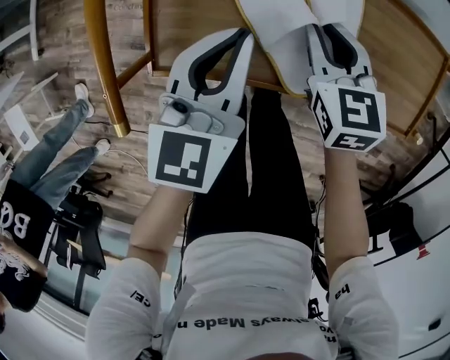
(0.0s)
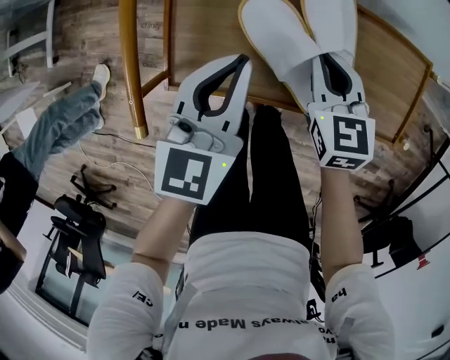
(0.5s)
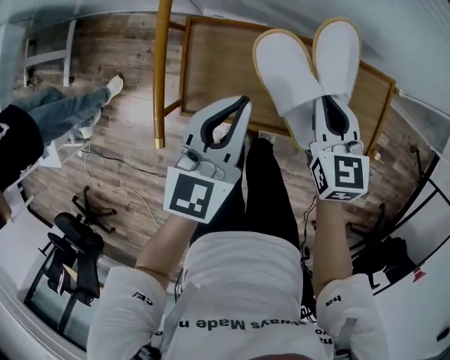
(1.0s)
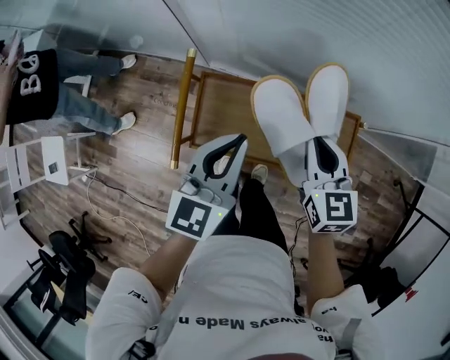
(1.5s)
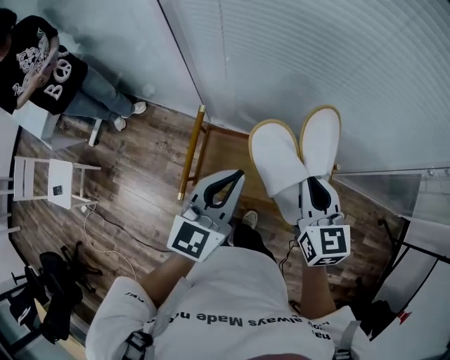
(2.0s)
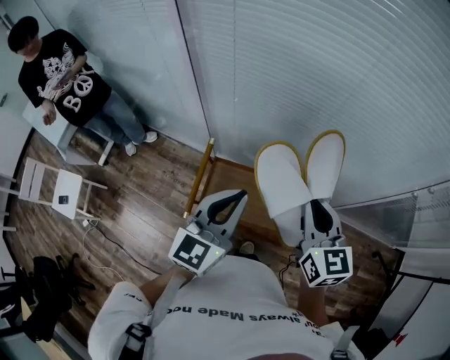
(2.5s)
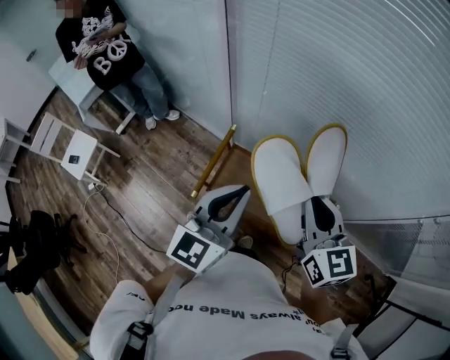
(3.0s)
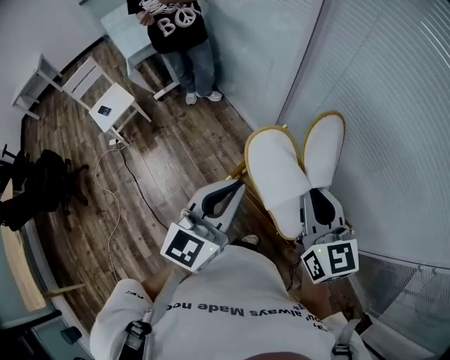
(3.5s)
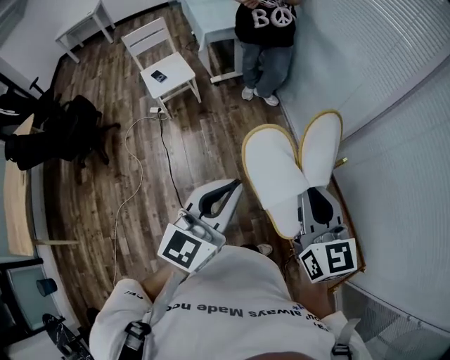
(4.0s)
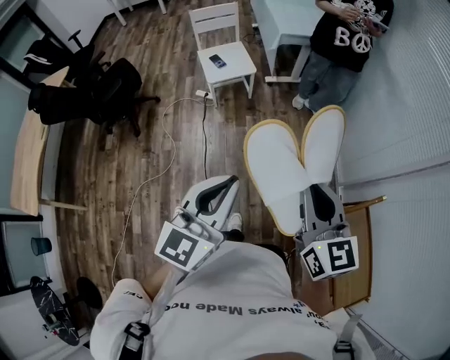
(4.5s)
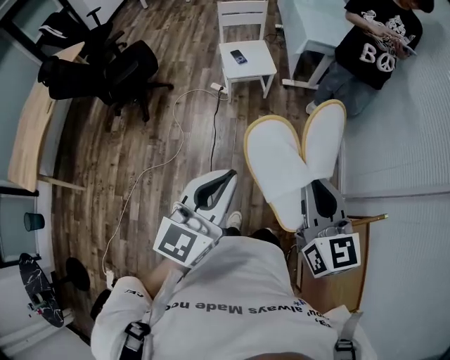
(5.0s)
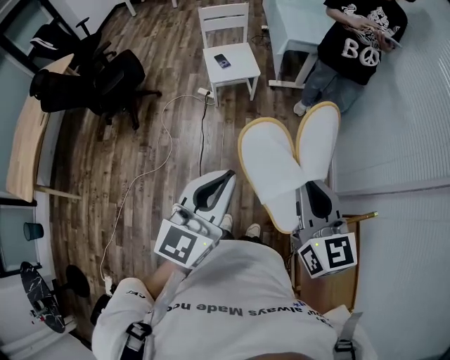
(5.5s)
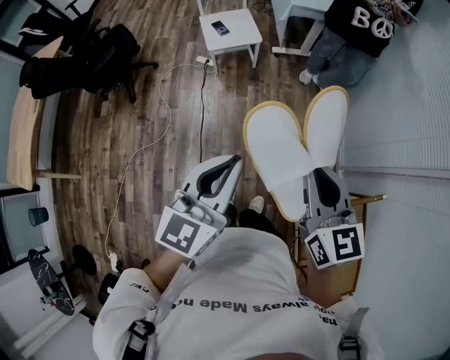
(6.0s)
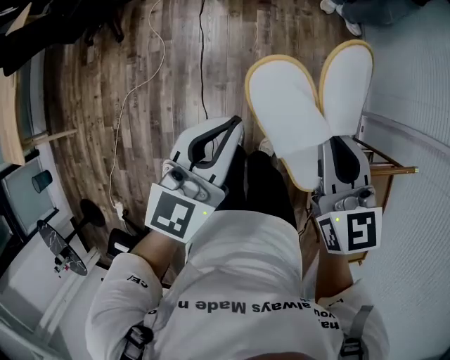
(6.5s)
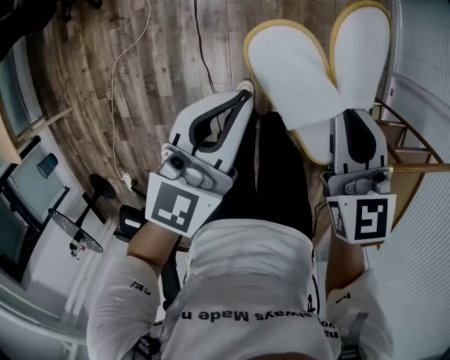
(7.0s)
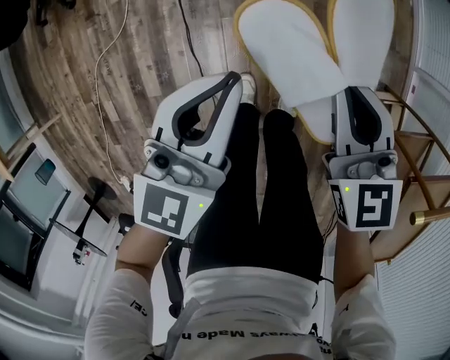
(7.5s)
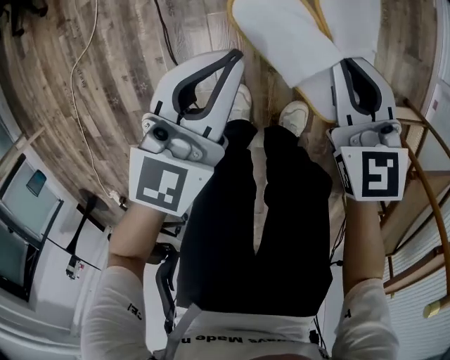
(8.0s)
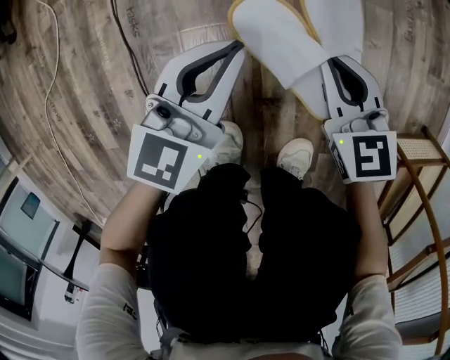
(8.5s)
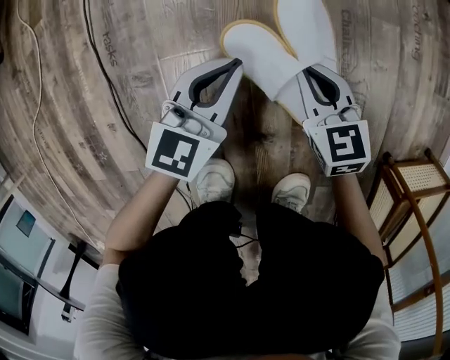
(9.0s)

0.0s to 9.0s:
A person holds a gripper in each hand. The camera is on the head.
0.0s to 2.0s: The grippers both shift upward by some 40 cm. The right gripper swivels approximately 20 degrees.
2.0s to 4.5s: The two grippers travel together, about 70 cm. The right gripper changes its angle by roughly 70 degrees, while the left gripper turns by approximately 70 degrees.
4.5s to 7.0s: The grippers both shift downward by about 35 cm. The right gripper turns by roughly 20 degrees.
7.0s to 9.0s: The grippers both shift downward by about 80 cm.

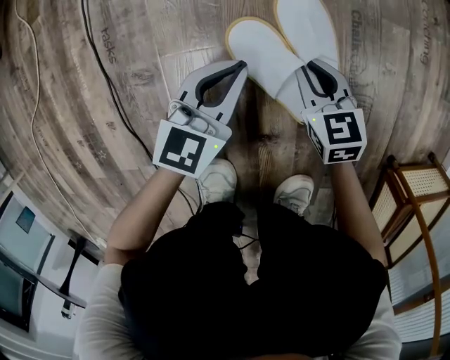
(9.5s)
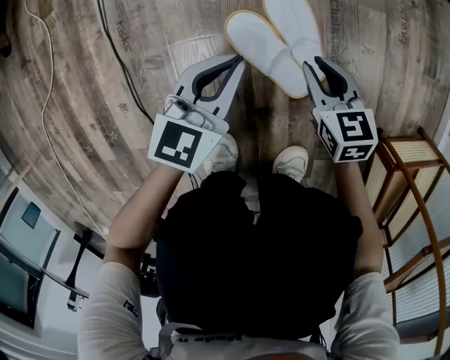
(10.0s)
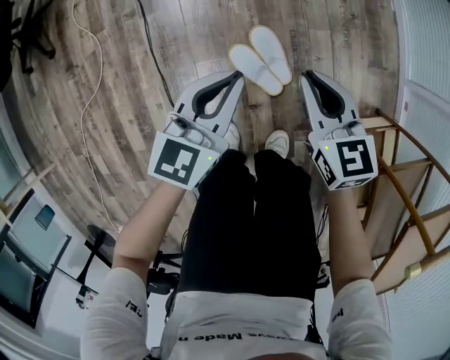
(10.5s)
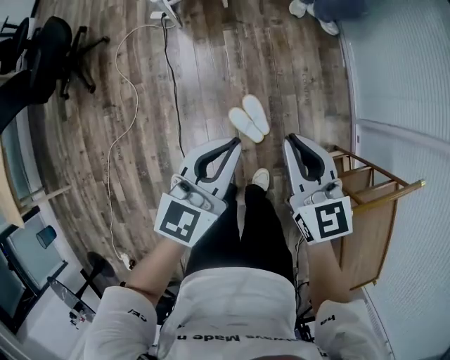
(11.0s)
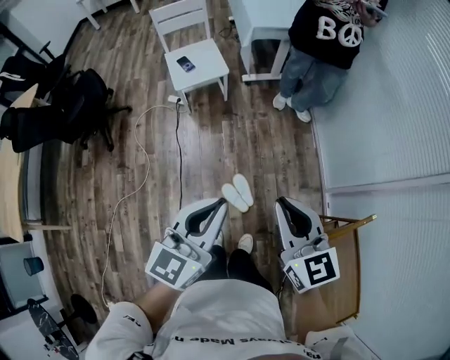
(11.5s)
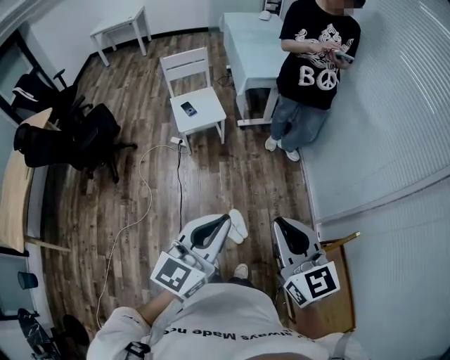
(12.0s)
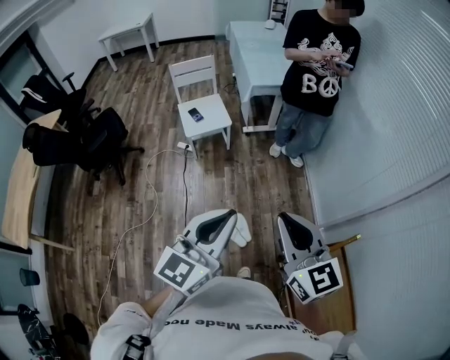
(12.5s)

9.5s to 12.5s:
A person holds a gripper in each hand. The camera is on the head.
9.5s to 11.0s: Both grippers move upward, roughly 80 cm. The right gripper swivels about 20 degrees.
11.0s to 12.5s: Both grippers travel together upward, roughly 40 cm.

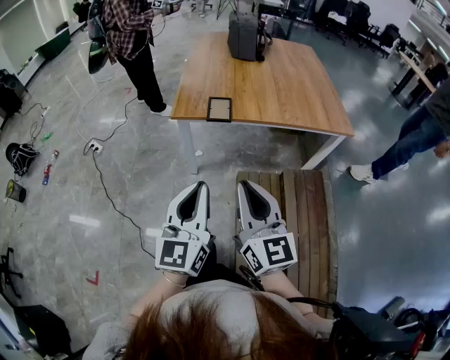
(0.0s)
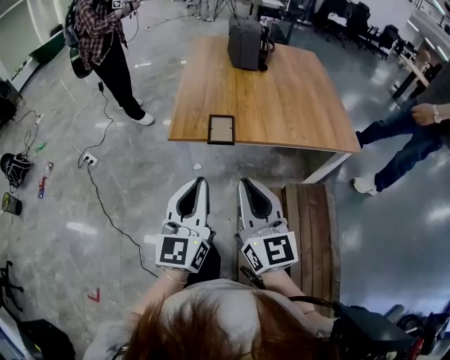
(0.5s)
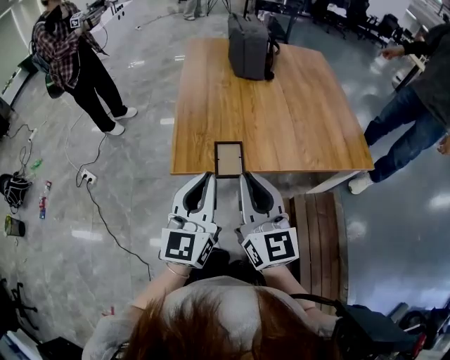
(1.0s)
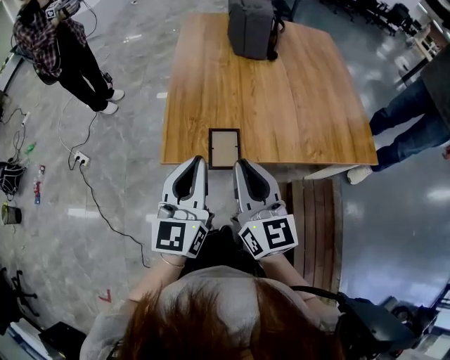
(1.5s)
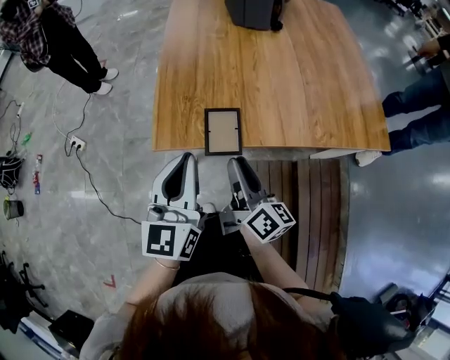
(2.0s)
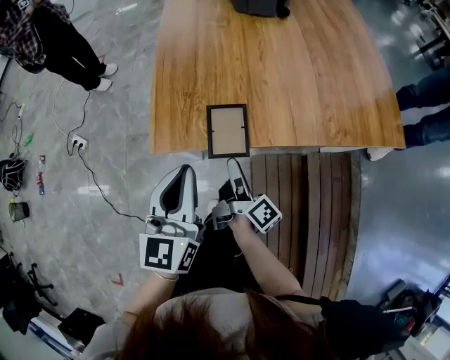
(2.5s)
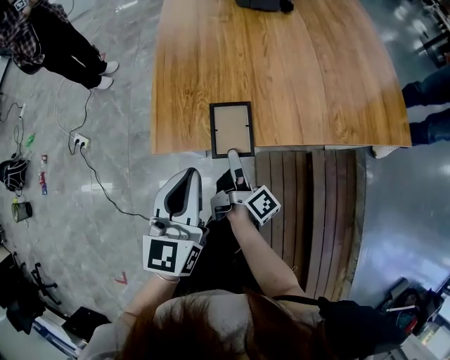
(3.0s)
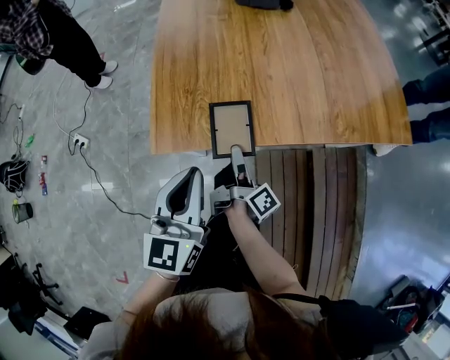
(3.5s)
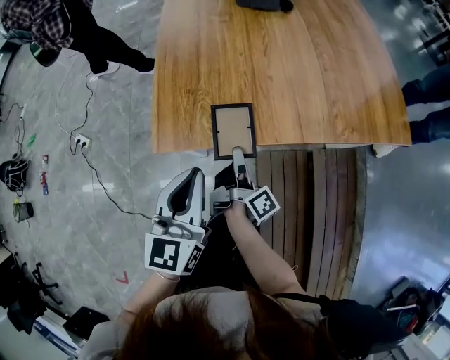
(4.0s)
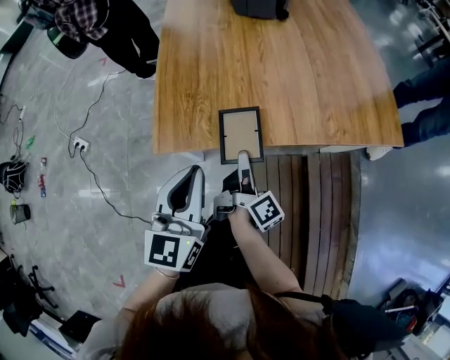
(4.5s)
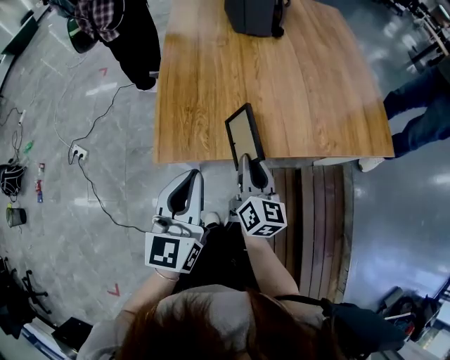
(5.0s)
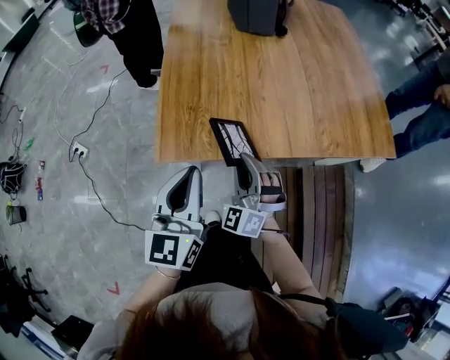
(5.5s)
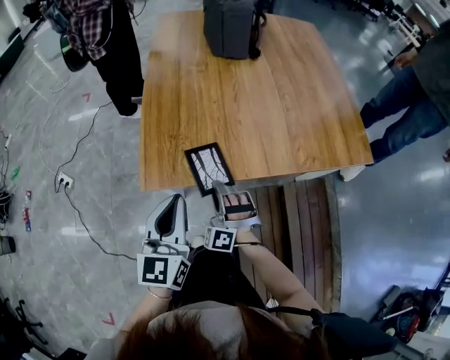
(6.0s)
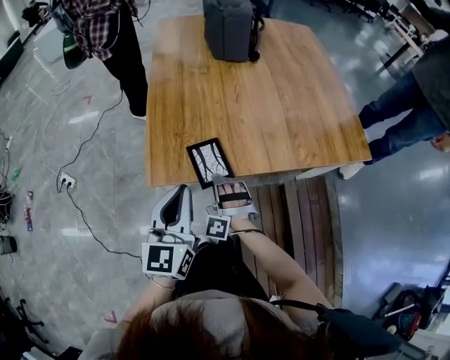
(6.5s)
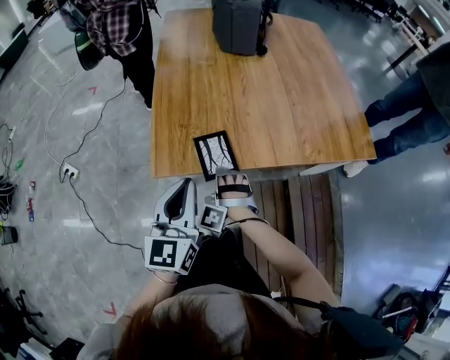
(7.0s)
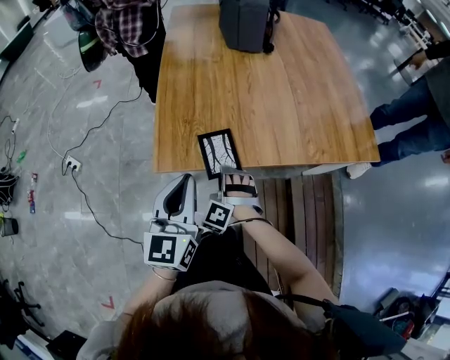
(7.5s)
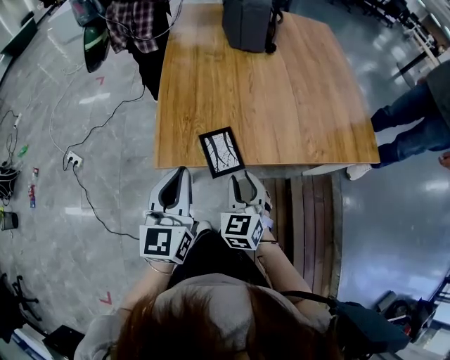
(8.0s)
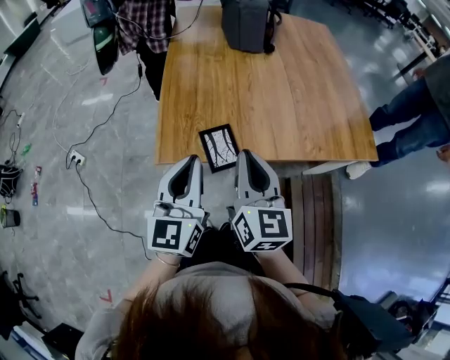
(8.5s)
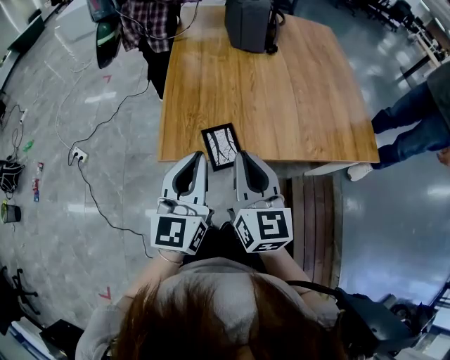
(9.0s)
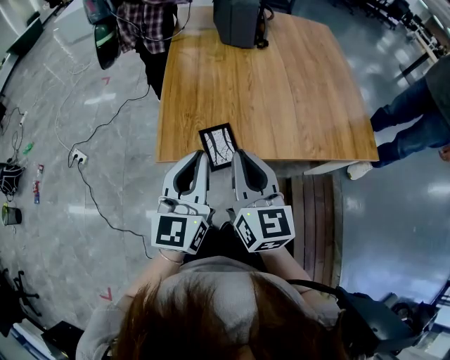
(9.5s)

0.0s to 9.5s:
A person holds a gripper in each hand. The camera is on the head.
0.0s to 2.0s: The left gripper travels forward by roughly 40 cm; the right gripper moves forward and downward, approximately 40 cm, rolls clockwise, seen from behind, by about 50 degrees, and opens its fingers.
2.0s to 4.0s: The right gripper travels downward by some 15 cm, rotates around the line of its fingers by about 40 degrees, clockwise from behind, and opens and closes again. The left gripper heads downward, covering approximately 5 cm.
4.0s to 5.5s: The right gripper heads upward, covering some 10 cm, and rolls counterclockwise, seen from behind, by approximately 150 degrees.
5.5s to 7.5s: The right gripper goes about 10 cm downward, and swivels about 30 degrees.
7.5s to 9.5s: The right gripper is displaced upward by approximately 25 cm, twists roughly 80 degrees clockwise, seen from behind, and closes; the left gripper moves upward, approximately 5 cm.

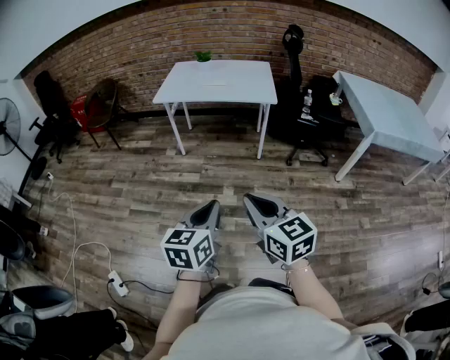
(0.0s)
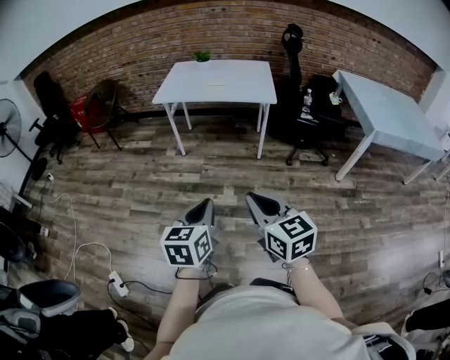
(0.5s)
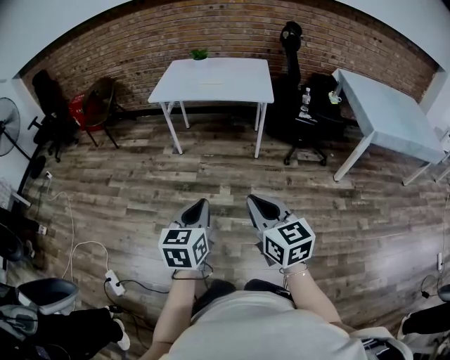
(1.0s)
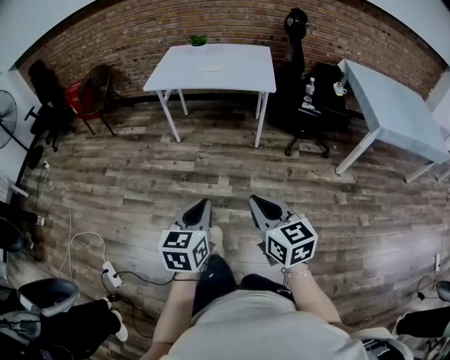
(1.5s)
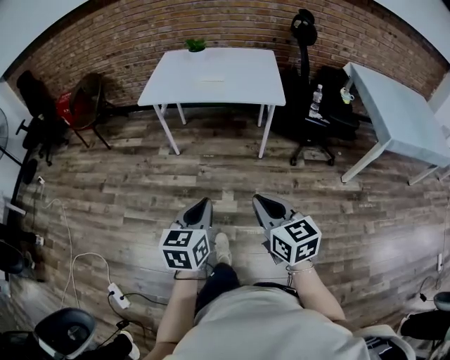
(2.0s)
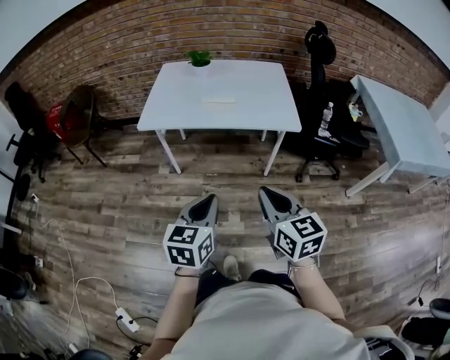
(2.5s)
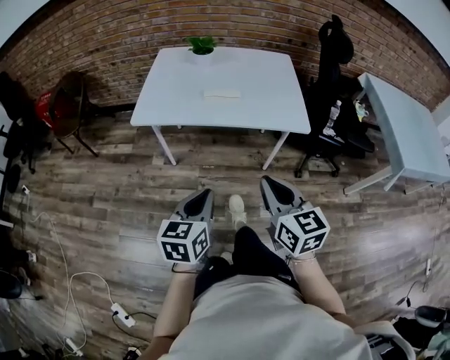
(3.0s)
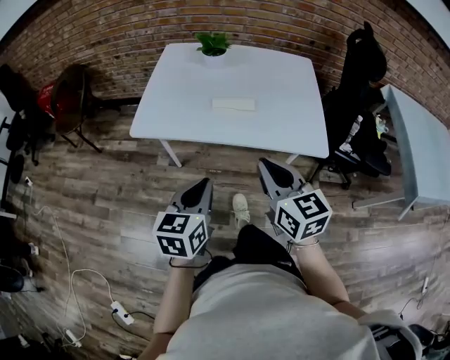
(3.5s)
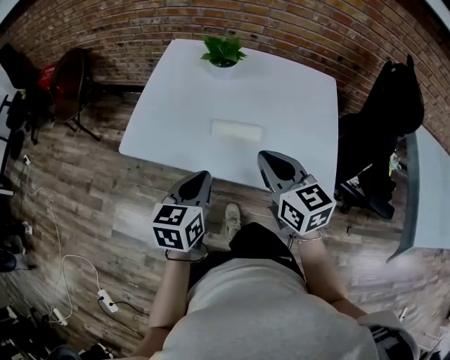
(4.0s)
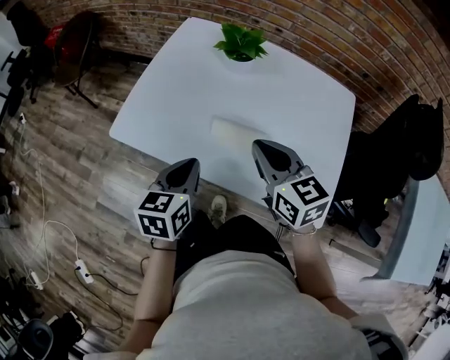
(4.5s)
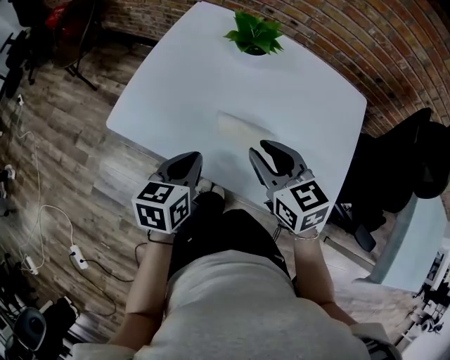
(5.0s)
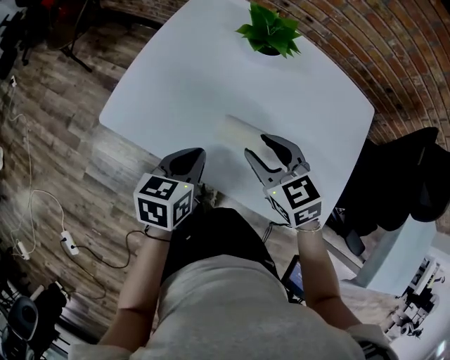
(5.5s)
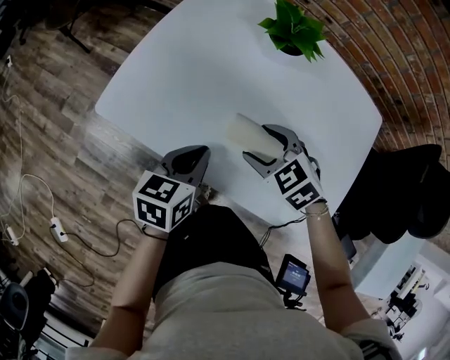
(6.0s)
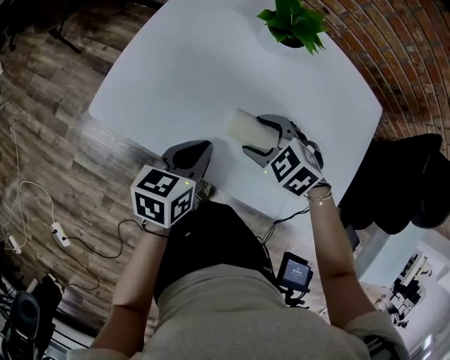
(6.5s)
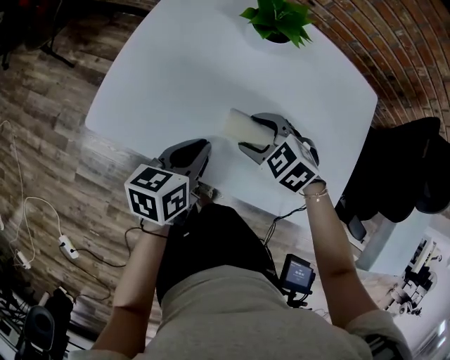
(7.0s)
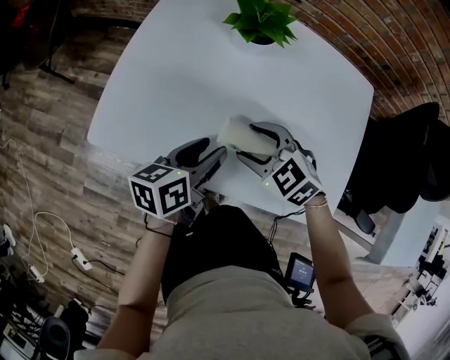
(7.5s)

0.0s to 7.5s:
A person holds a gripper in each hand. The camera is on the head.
0.0s to 2.0s: The grippers both shift forward by some 20 cm.
2.0s to 4.0s: The pair of grippers is taken forward, roughly 60 cm.
4.0s to 5.5s: The grippers both shift forward and downward by approximately 15 cm. The right gripper swivels some 30 degrees, and opens its fingers.
5.5s to 7.5s: The left gripper swivels roughly 20 degrees, and opens its fingers; the right gripper travels downward by approximately 5 cm.
